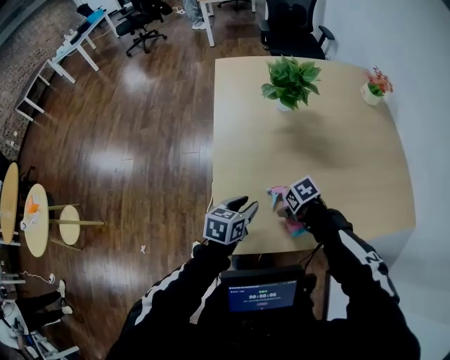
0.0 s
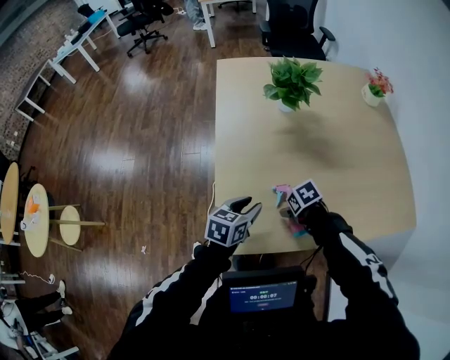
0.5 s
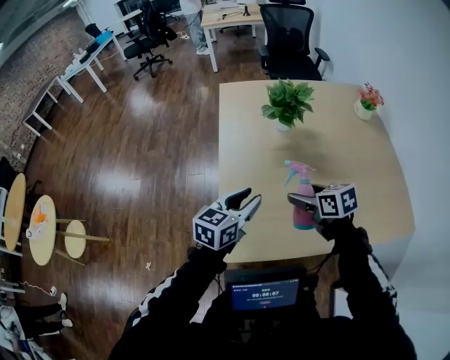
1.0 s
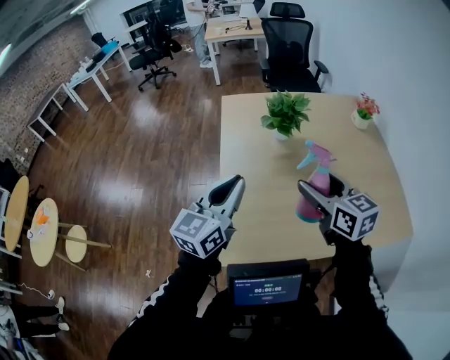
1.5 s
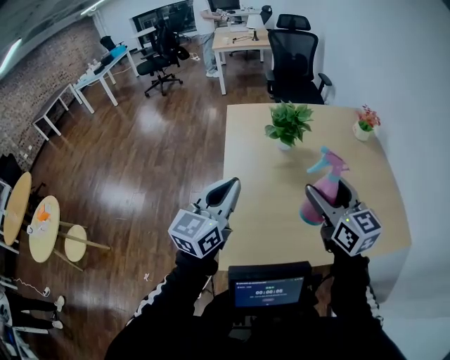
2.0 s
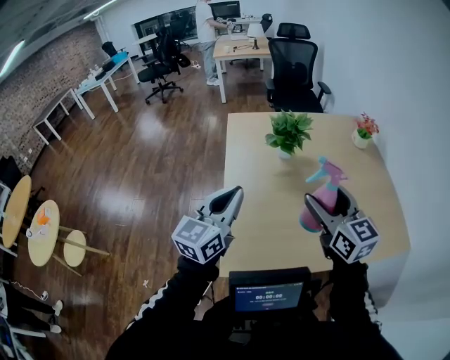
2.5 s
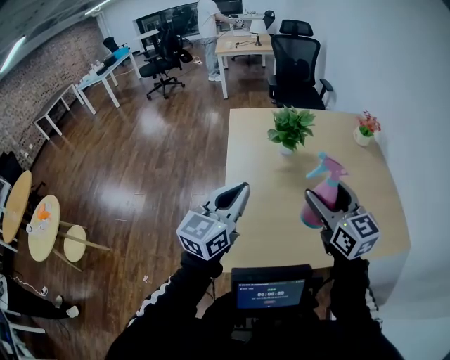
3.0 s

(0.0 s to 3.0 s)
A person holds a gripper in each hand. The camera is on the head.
0.0 s - 1.5 s: The grippers both shift upward by some 35 cm. The left gripper tips its fingers upward by approximately 40 degrees, and closes its fingers, while the right gripper angles its fingers upward, by about 60 degrees.
1.5 s - 3.0 s: The right gripper goes approximately 5 cm upward.

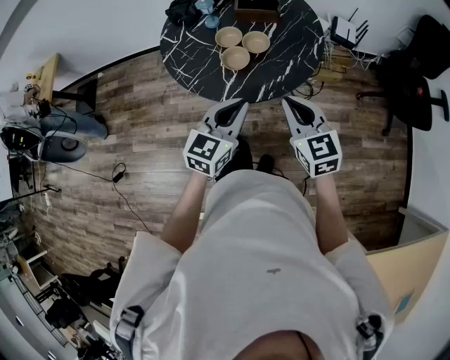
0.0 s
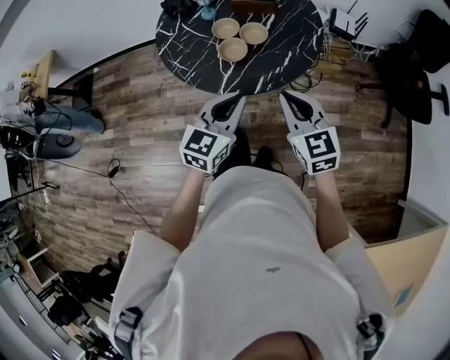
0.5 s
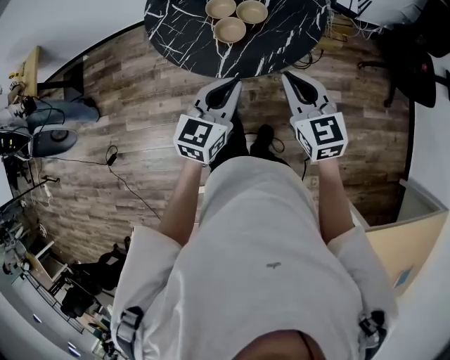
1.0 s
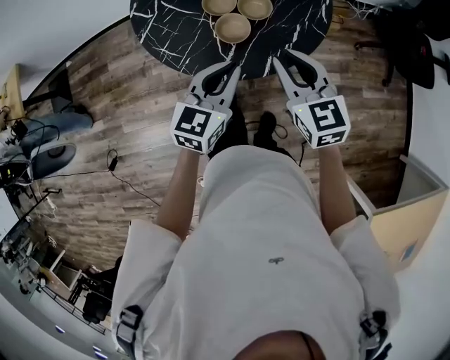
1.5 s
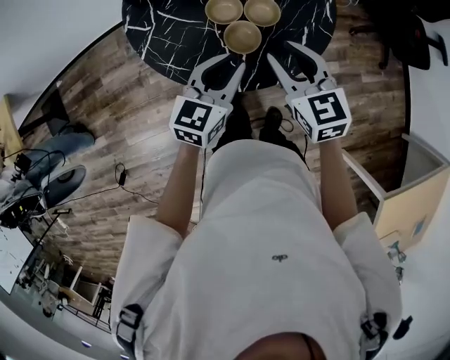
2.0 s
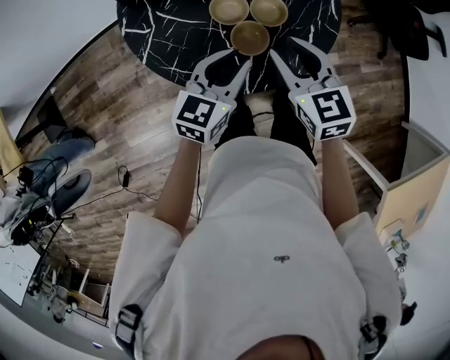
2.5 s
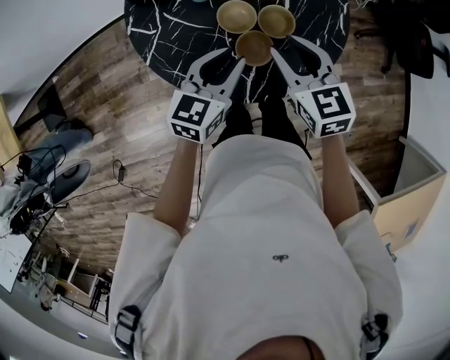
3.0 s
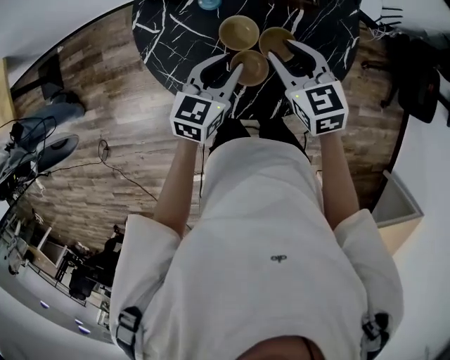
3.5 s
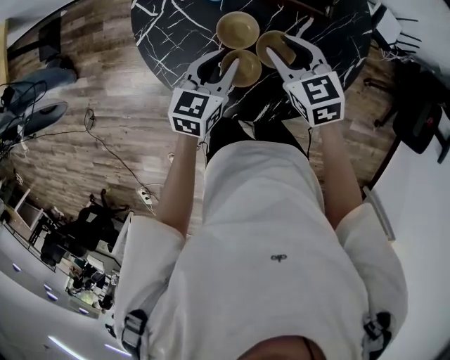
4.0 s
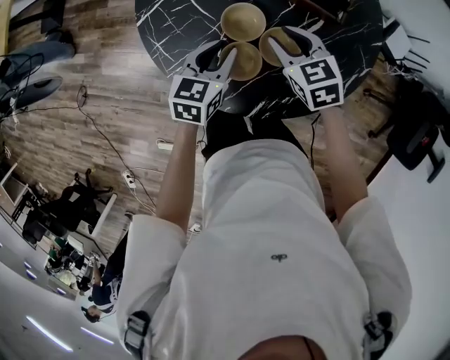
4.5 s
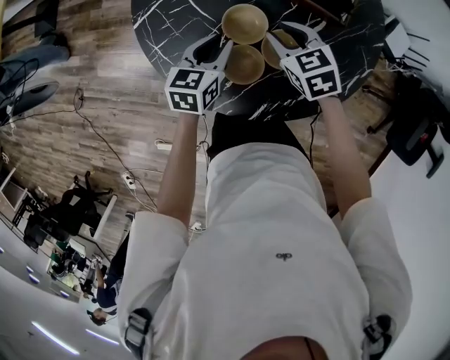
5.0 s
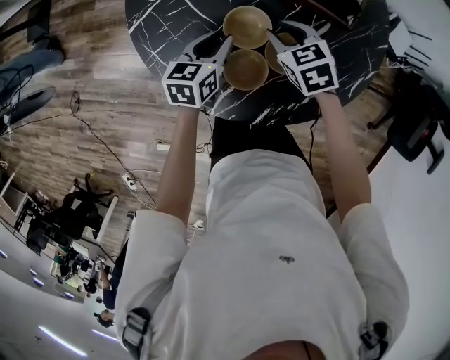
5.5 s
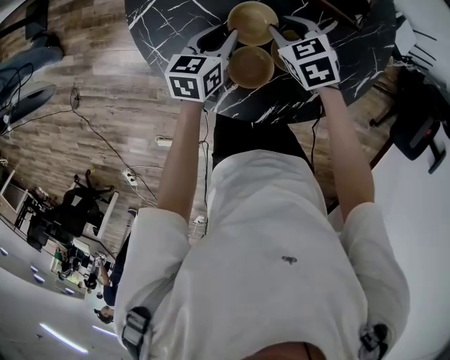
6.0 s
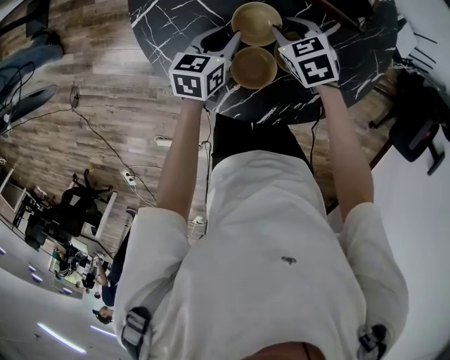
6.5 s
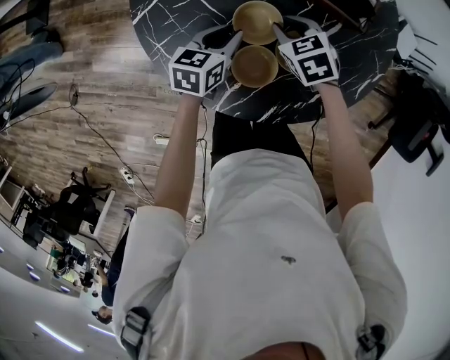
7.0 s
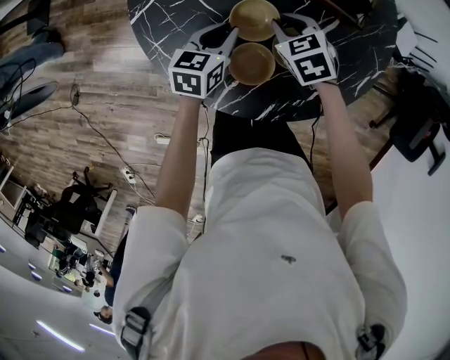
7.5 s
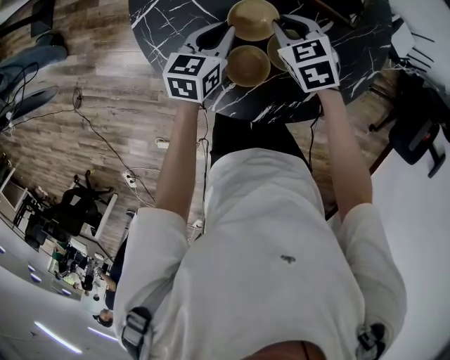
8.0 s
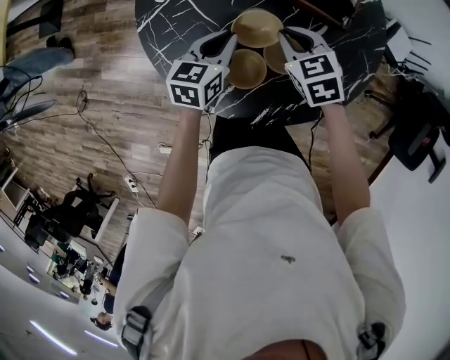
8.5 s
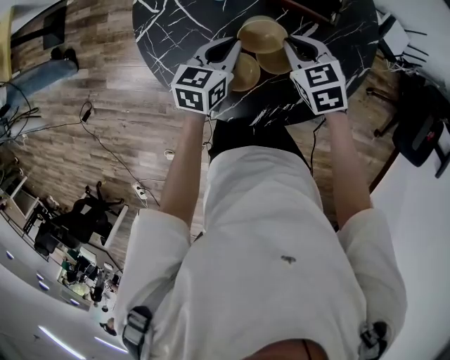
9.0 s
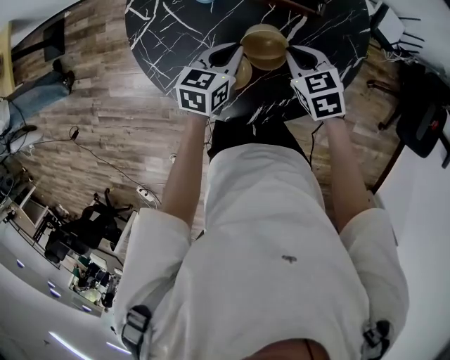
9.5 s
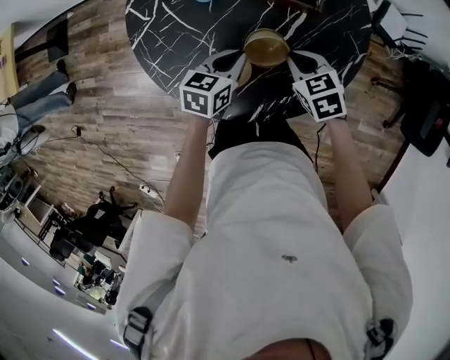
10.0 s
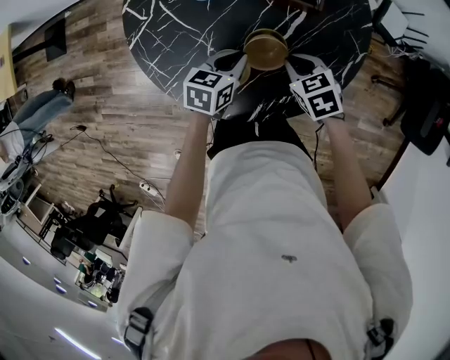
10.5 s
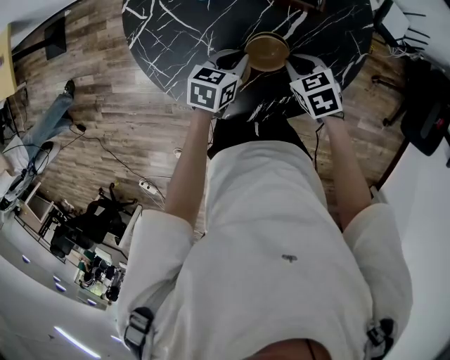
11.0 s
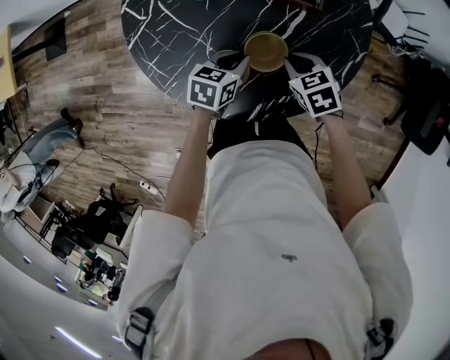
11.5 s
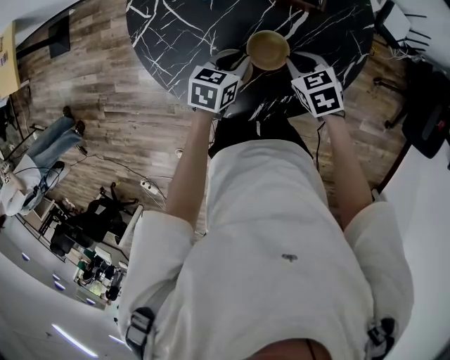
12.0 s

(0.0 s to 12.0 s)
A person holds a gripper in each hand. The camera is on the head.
0.0 s - 2.0 s: The grippers both shift forward and to the left by some 20 cm. The right gripper opens.
2.0 s - 4.0 s: The left gripper shifts by approximately 15 cm, and swivels some 30 degrees, while the right gripper ends up about 20 cm from where it was, and changes its angle by approximately 30 degrees.
4.0 s - 6.0 s: The left gripper shifts roughly 10 cm downward and forward. The right gripper moves downward, approximately 15 cm.
6.0 s - 8.0 s: The grippers stay close to where they were, moving slightly.
8.0 s - 10.0 s: The two grippers go roughly 10 cm to the right and backward.
10.0 s - 12.0 s: The grippers move only a little.

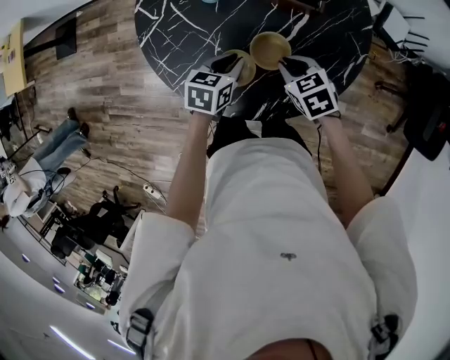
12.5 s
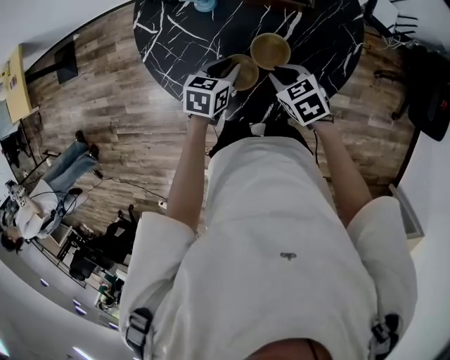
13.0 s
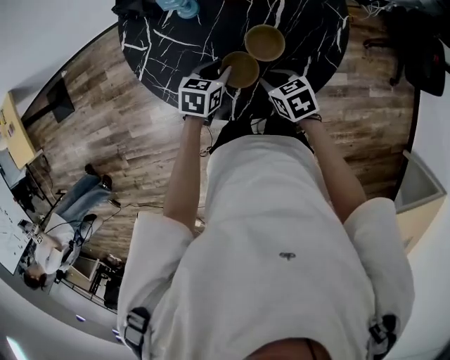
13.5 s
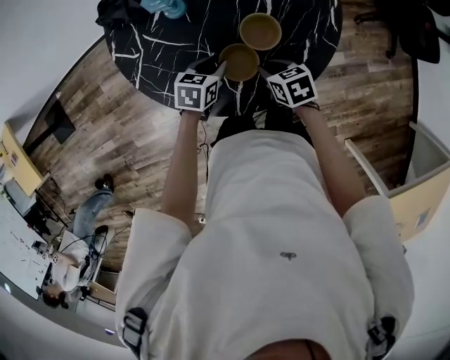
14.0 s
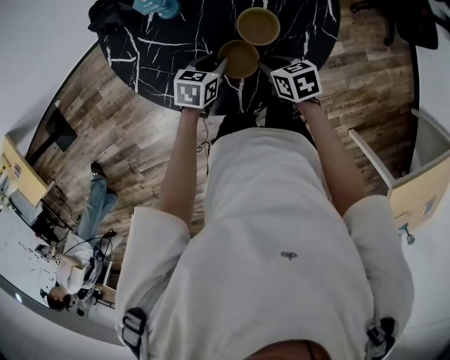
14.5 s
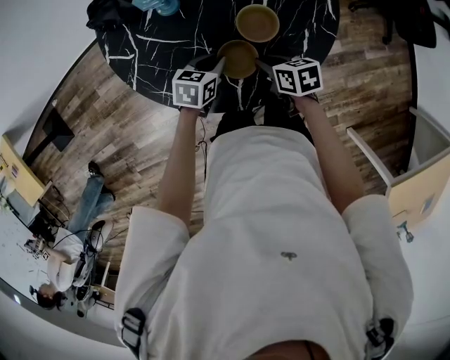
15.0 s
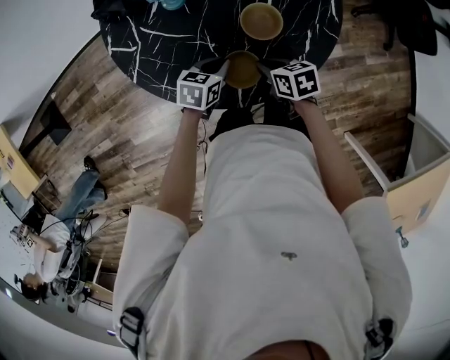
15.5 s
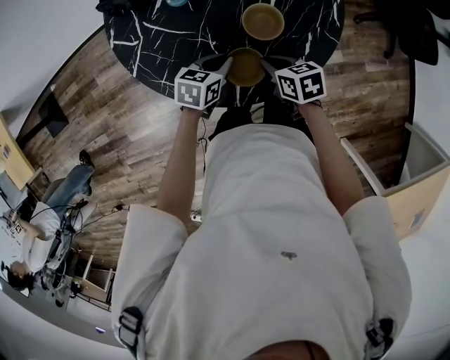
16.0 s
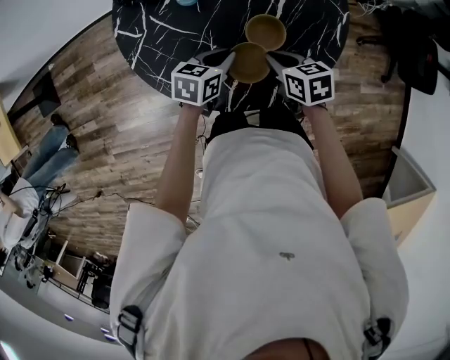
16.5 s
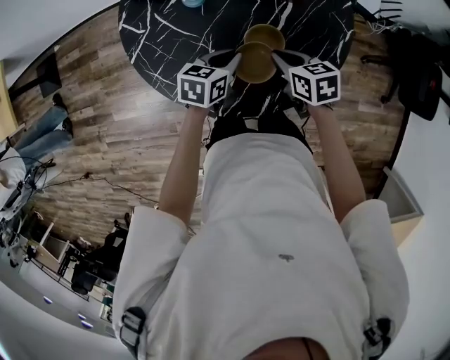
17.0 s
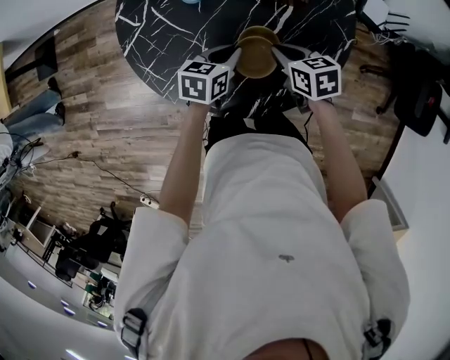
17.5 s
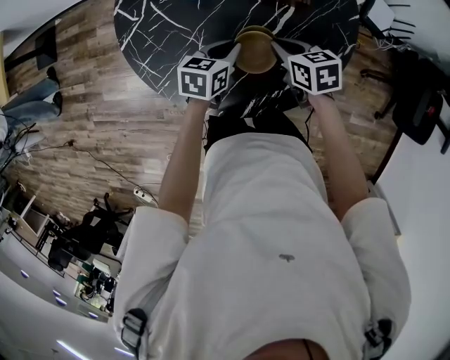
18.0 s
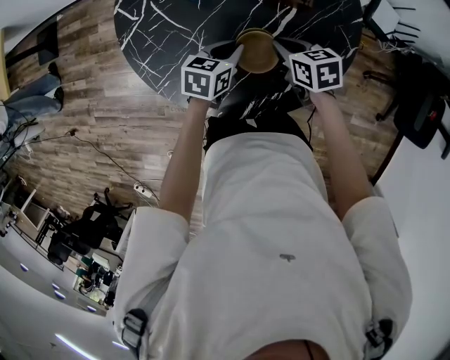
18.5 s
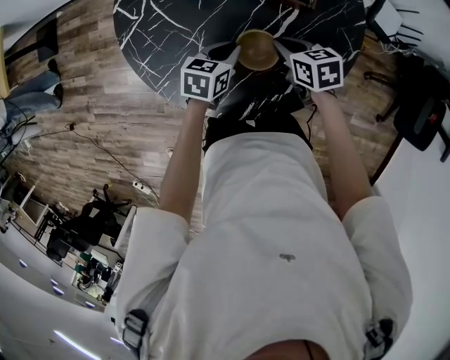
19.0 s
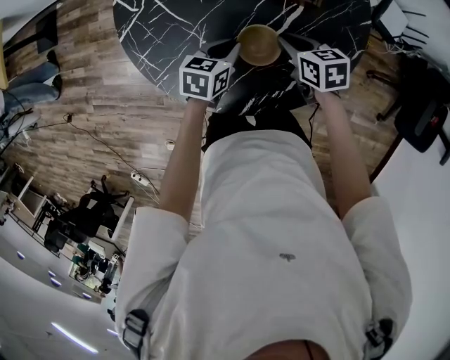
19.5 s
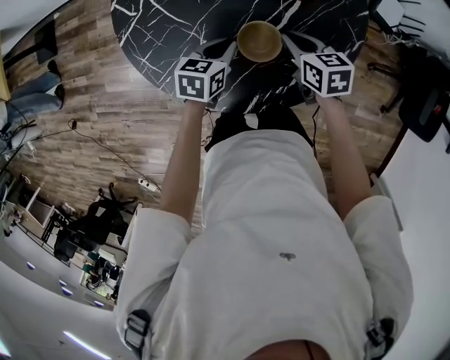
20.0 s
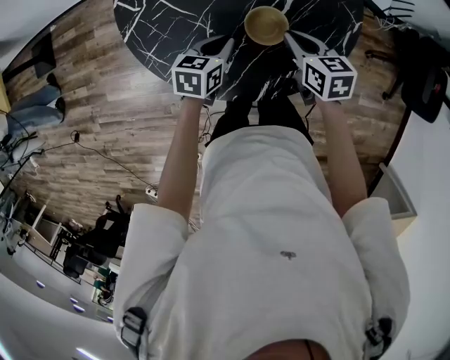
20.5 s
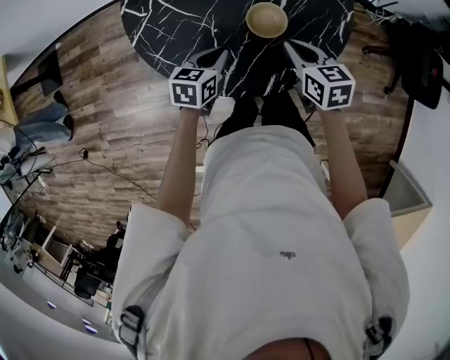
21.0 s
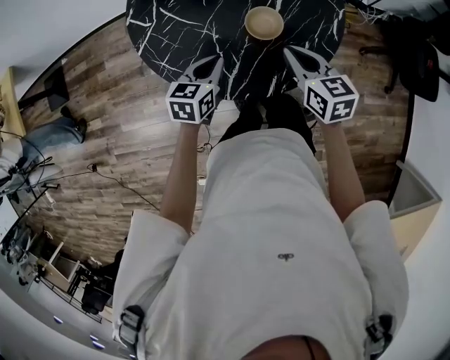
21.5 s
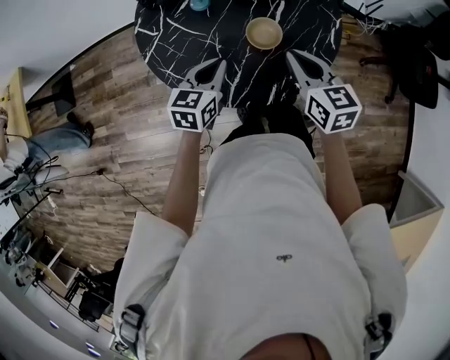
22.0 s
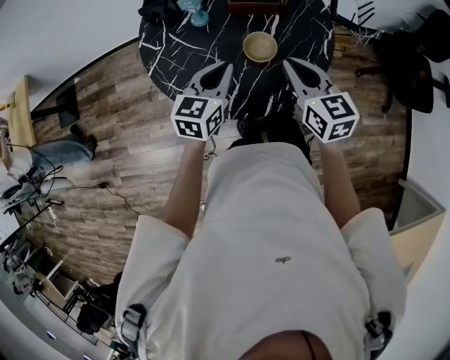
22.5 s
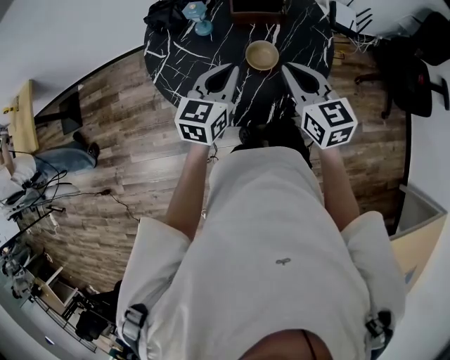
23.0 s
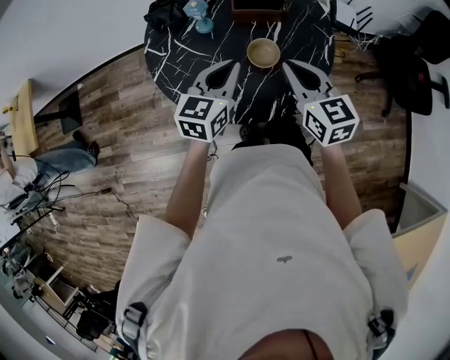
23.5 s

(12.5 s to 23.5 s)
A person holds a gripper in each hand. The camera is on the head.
12.5 s - 14.5 s: The left gripper travels downward by roughly 5 cm, and turns by approximately 30 degrees, while the right gripper ends up approximately 10 cm from where it was, and rotates around the line of its fingers by about 40 degrees, clockwise from behind.
14.5 s - 16.0 s: The grippers move only a little.
16.0 s - 18.0 s: The grippers both shift forward and to the right by about 10 cm. The right gripper swivels approximately 20 degrees. The left gripper rotates about 30 degrees.
18.0 s - 20.0 s: The grippers stay close to where they were, moving slightly.
20.0 s - 21.5 s: The left gripper goes about 15 cm backward, upward and to the left. The right gripper goes some 20 cm backward and upward, and rotates roughly 20 degrees.
21.5 s - 23.5 s: The two grippers go approximately 15 cm upward.

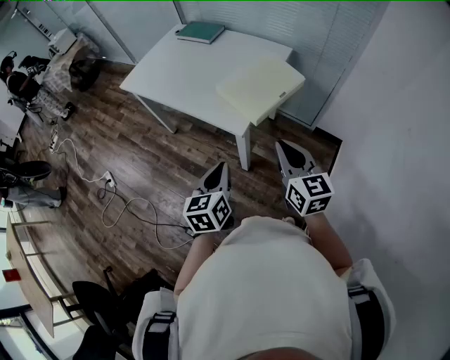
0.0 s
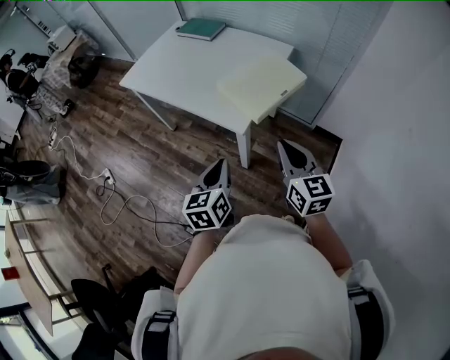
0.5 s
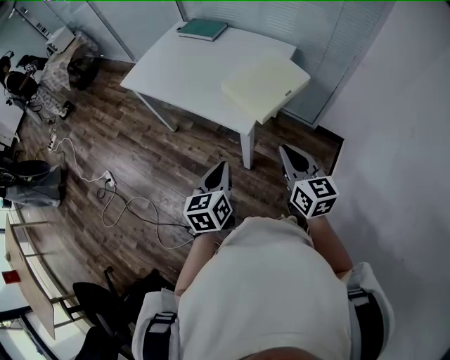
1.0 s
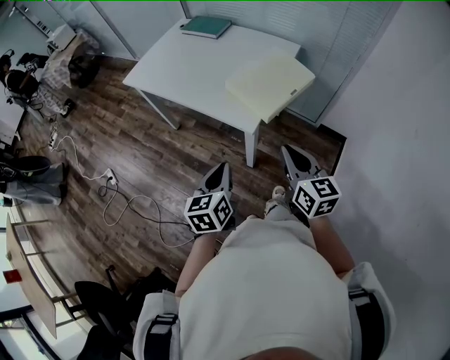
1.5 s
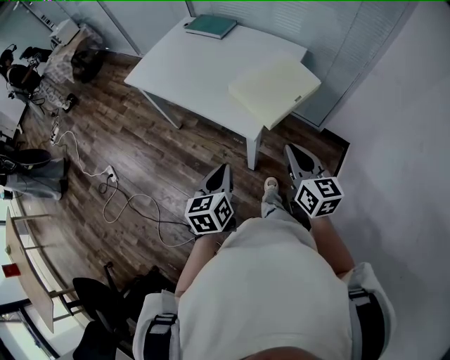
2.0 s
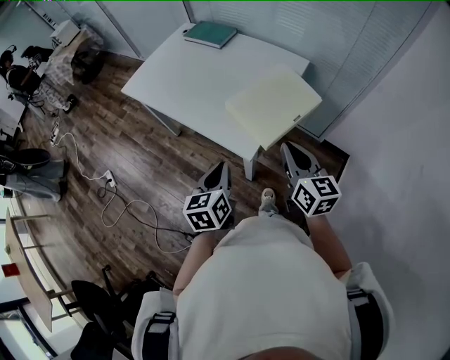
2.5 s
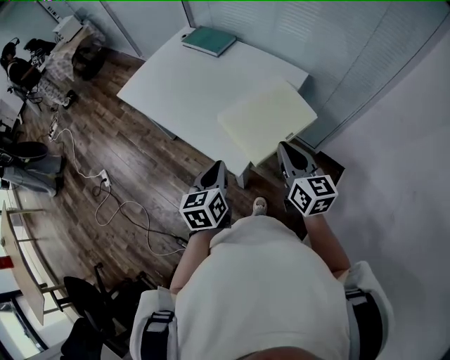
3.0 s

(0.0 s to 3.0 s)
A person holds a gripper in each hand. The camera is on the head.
0.0 s - 1.5 s: The grippers stay close to where they were, moving slightly.
1.5 s - 3.0 s: Both grippers move forward, roughly 15 cm.
